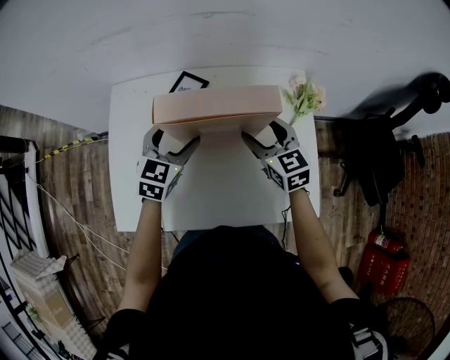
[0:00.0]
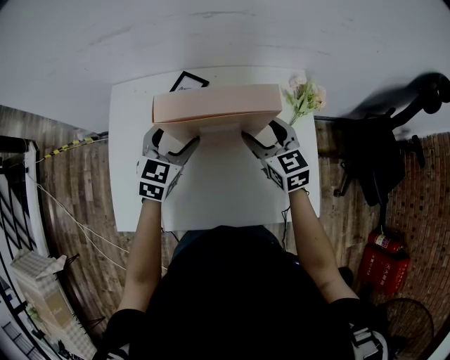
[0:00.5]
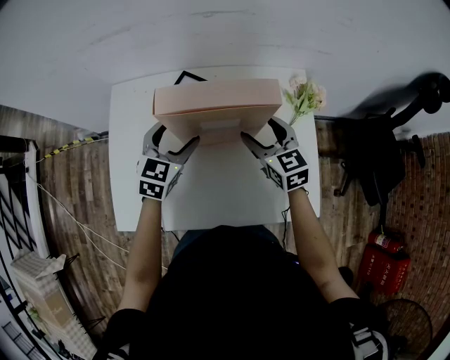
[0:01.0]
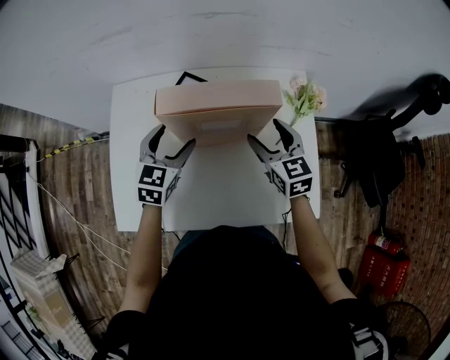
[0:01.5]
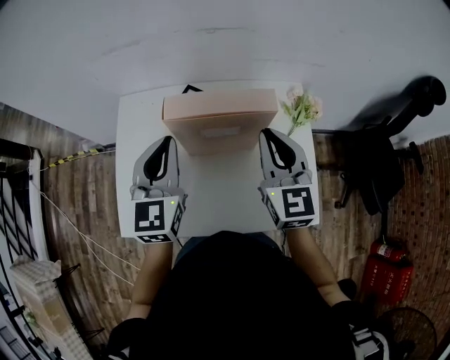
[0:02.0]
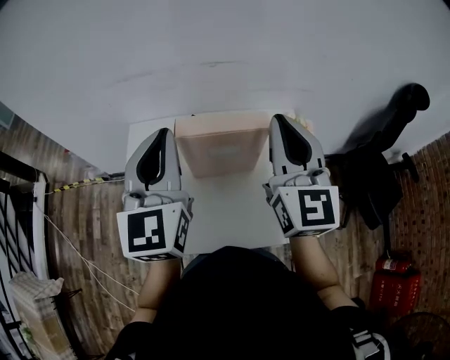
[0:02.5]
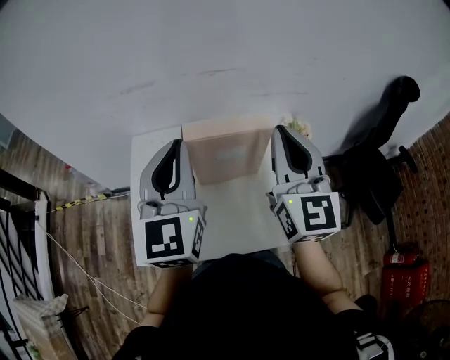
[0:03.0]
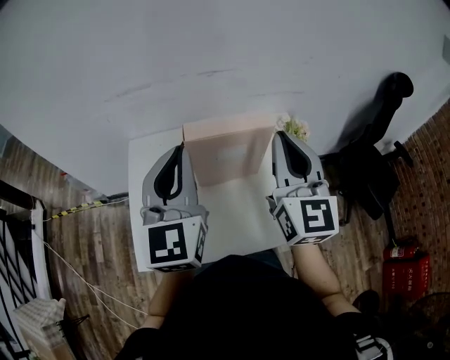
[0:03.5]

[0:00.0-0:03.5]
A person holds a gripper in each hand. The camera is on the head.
0:00.0 to 0:02.0: Both grippers move upward, some 15 cm. The left gripper turns by roughly 30 degrees, and closes up. Meanwhile the right gripper rotates approximately 20 degrees, and closes.
0:02.0 to 0:03.5: Both grippers move upward and backward, approximately 15 cm.

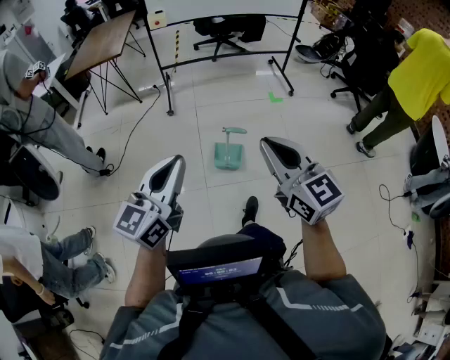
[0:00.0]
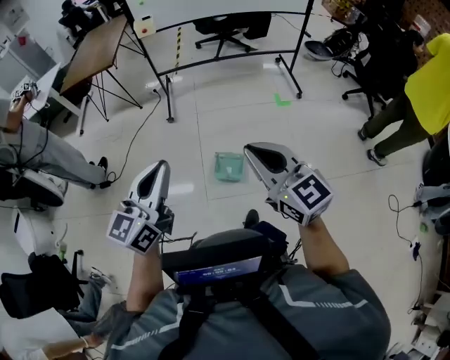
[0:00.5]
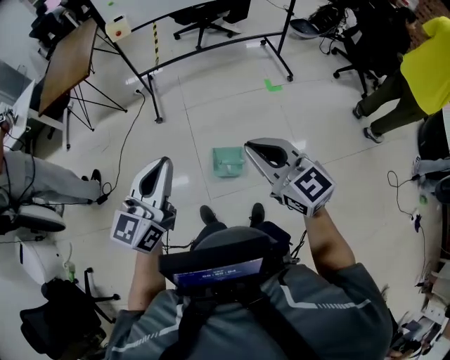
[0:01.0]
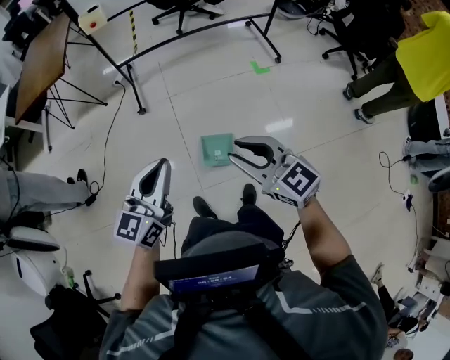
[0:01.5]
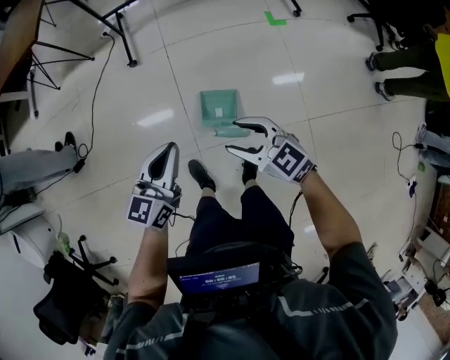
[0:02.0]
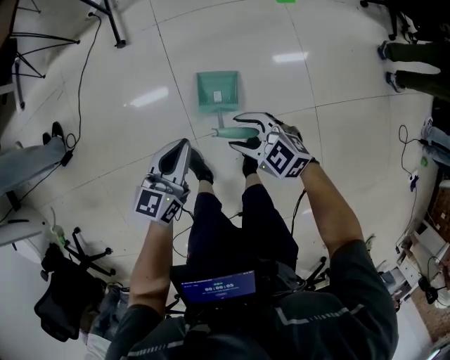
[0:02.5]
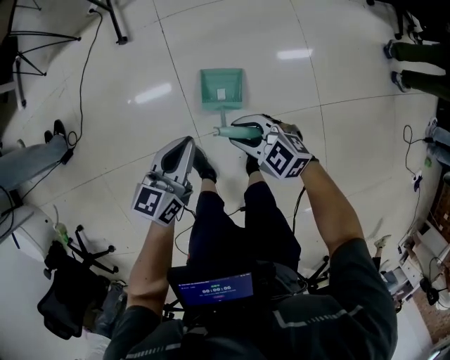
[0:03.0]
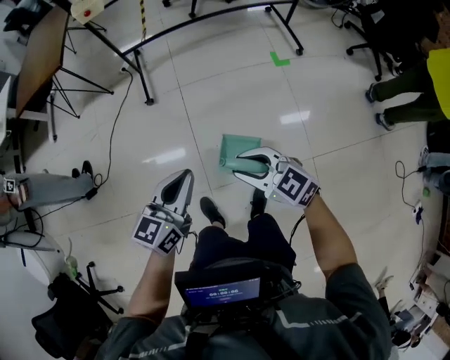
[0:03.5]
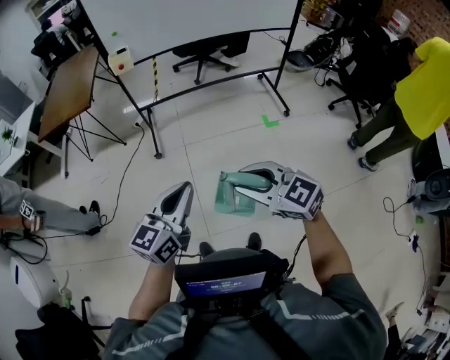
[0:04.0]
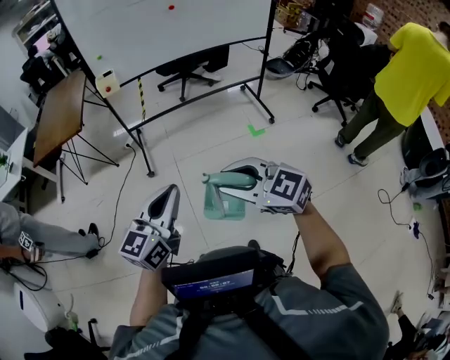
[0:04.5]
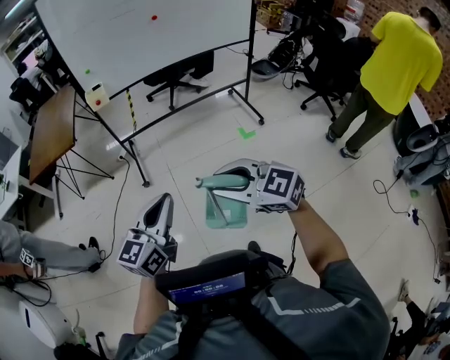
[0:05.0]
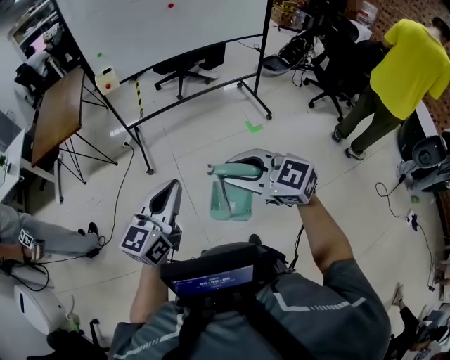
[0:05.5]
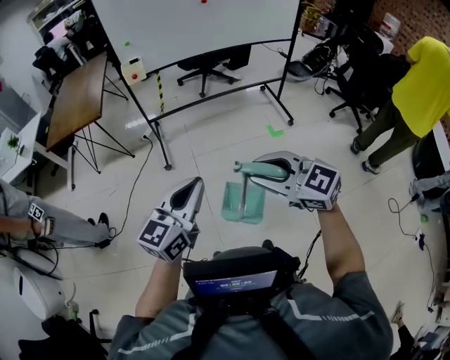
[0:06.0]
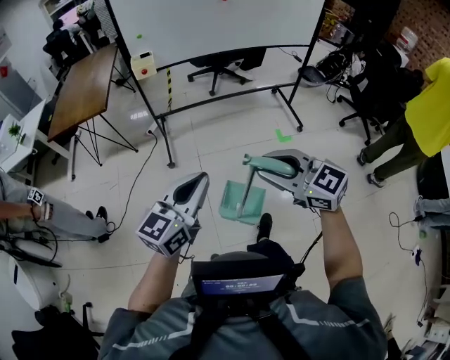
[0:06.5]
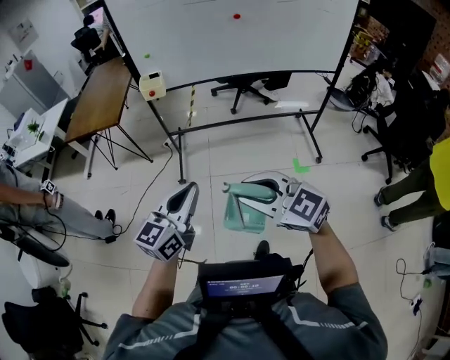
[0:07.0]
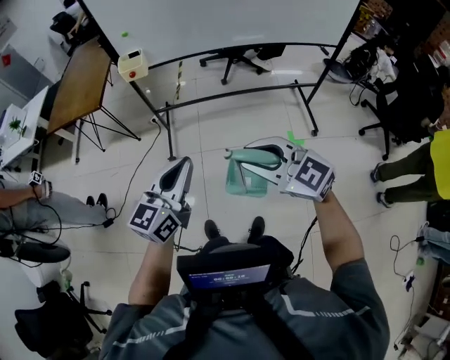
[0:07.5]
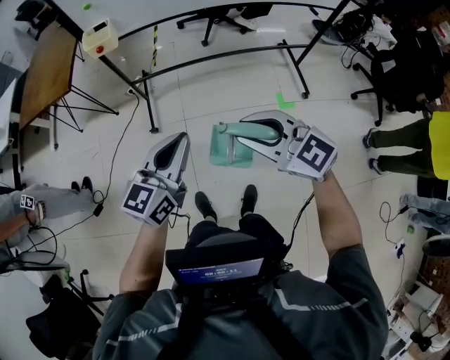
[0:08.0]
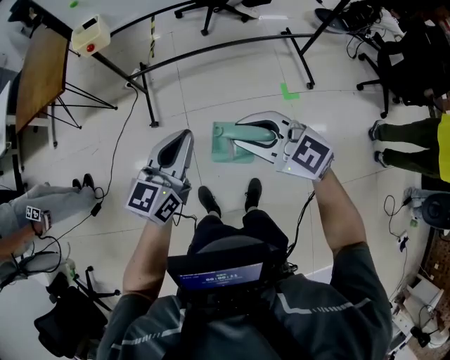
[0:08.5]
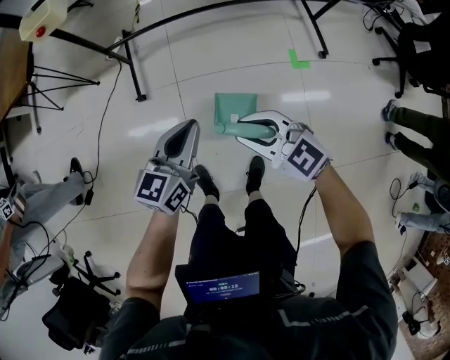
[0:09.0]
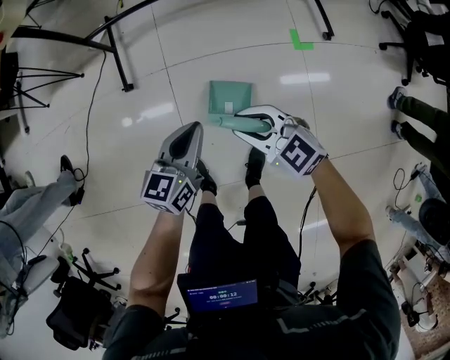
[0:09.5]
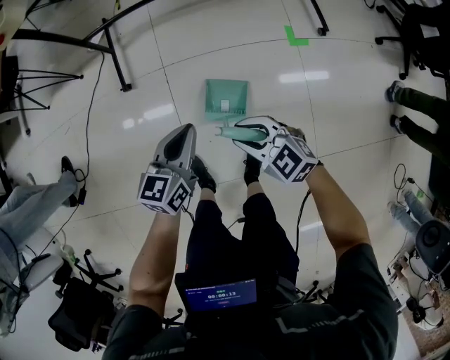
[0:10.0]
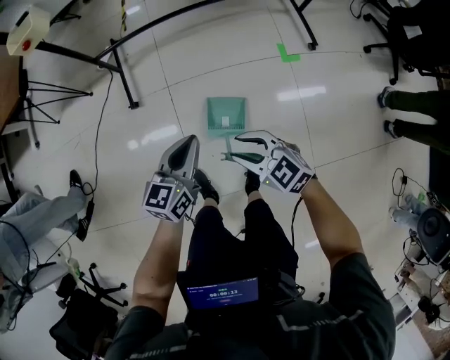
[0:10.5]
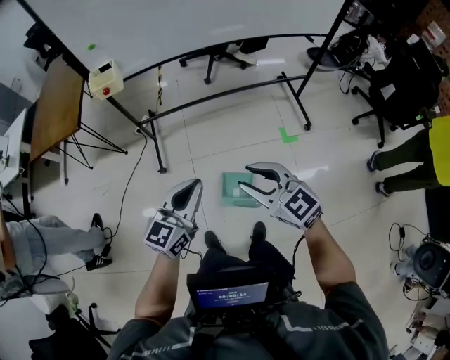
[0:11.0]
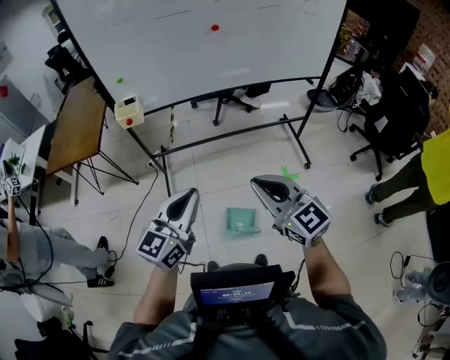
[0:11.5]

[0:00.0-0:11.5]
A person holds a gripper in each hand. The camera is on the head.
0:00.0 to 0:02.0: Both grippers are carried forward, roughly 60 cm. Both grippers travel together downward, approximately 40 cm. The right gripper changes its angle by about 30 degrees, and opens up.
0:02.0 to 0:04.0: The two grippers go some 35 cm upward. The right gripper closes.
0:04.0 to 0:06.0: The right gripper shifts about 5 cm upward. The left gripper travels to the left by approximately 5 cm.
0:06.0 to 0:07.5: The two grippers travel together, forward and to the right, approximately 40 cm.
0:07.5 to 0:09.5: The grippers both shift downward by about 60 cm. The left gripper rotates roughly 20 degrees.
0:09.5 to 0:11.5: The two grippers go approximately 60 cm upward. The right gripper changes its angle by approximately 30 degrees, and closes up, while the left gripper turns by some 30 degrees.

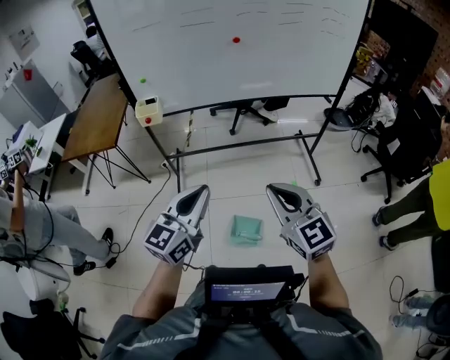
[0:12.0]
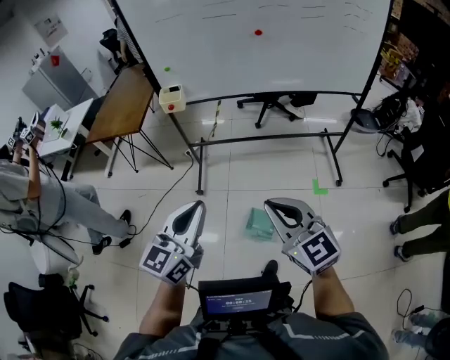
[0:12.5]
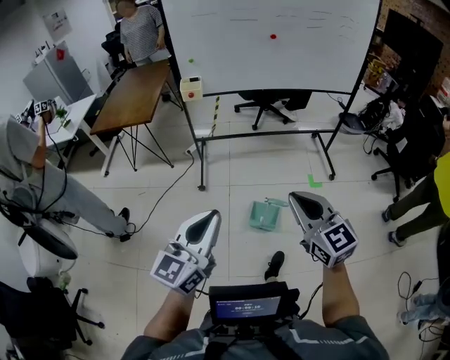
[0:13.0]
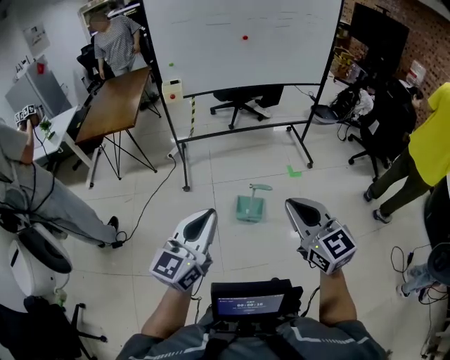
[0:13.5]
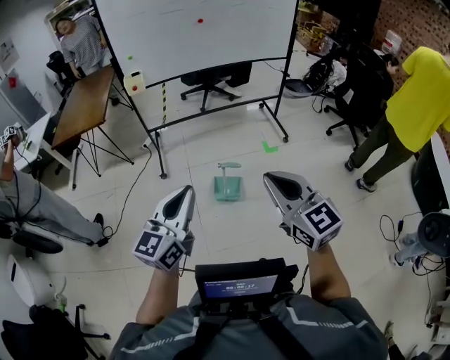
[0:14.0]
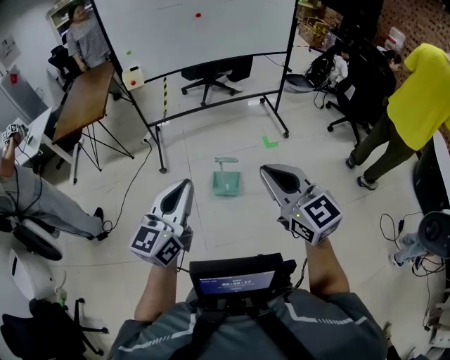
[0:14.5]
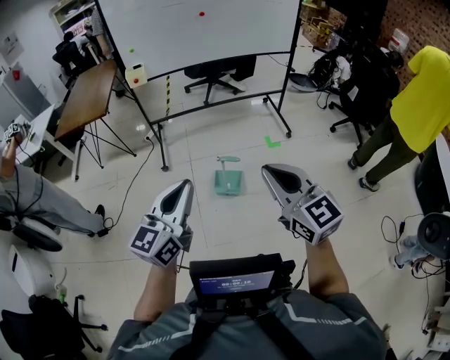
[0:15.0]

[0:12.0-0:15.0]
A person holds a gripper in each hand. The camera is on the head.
0:12.0 to 0:13.5: The pair of grippers is taken backward, approximately 60 cm.
0:13.5 to 0:15.0: Both grippers move to the right, some 15 cm.

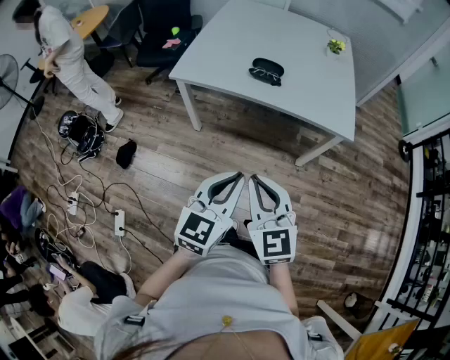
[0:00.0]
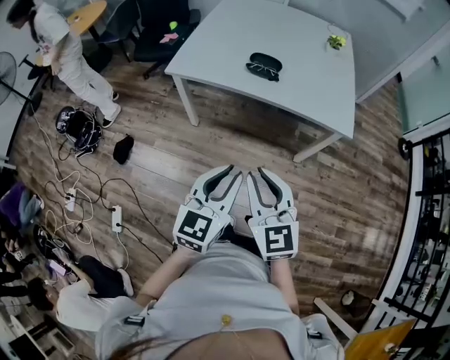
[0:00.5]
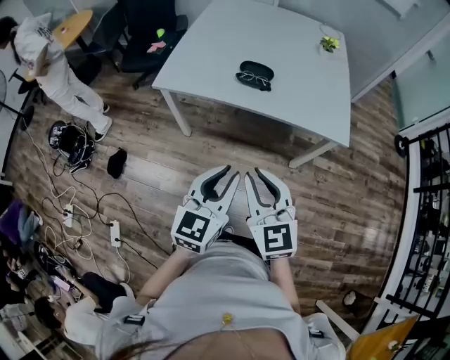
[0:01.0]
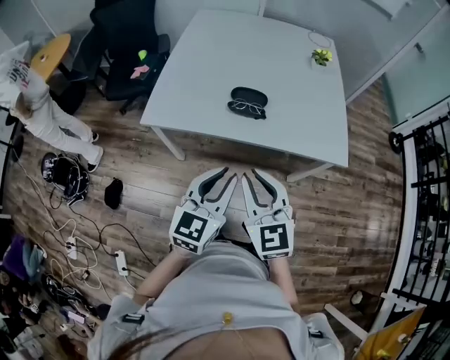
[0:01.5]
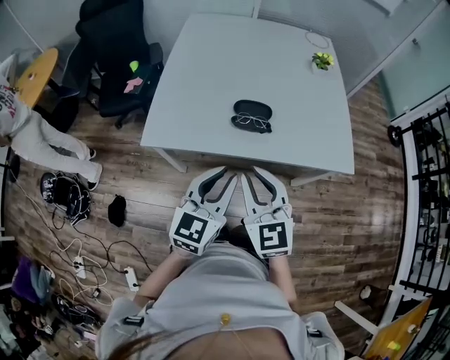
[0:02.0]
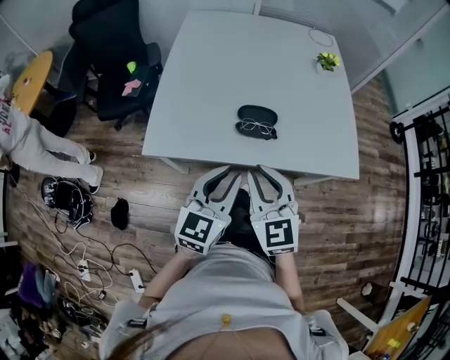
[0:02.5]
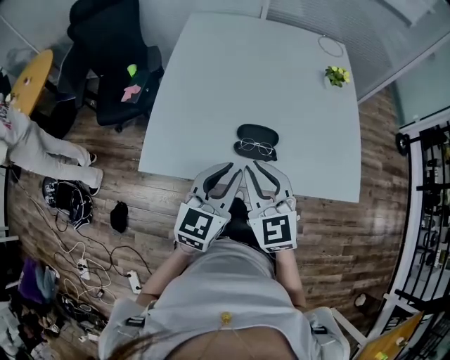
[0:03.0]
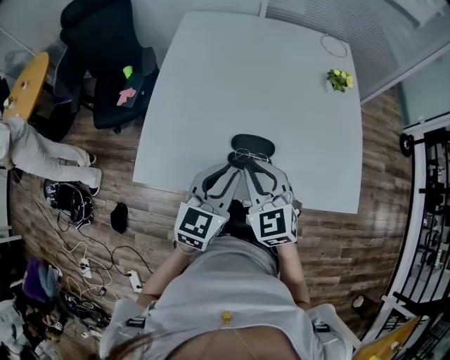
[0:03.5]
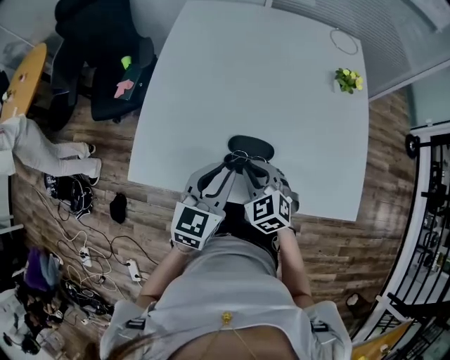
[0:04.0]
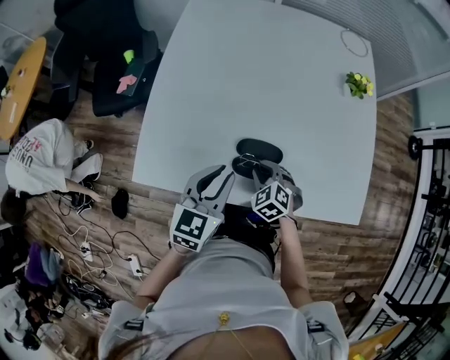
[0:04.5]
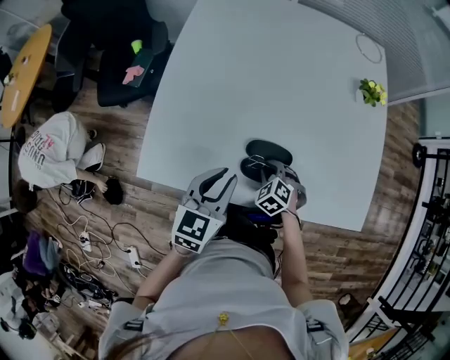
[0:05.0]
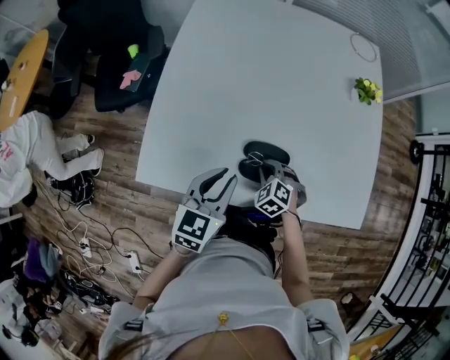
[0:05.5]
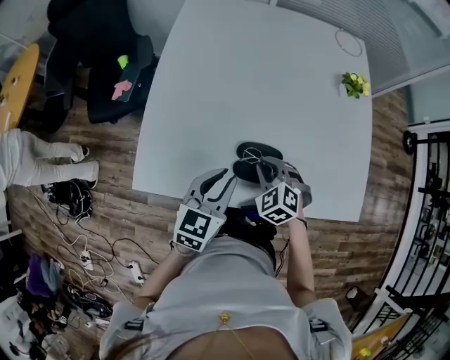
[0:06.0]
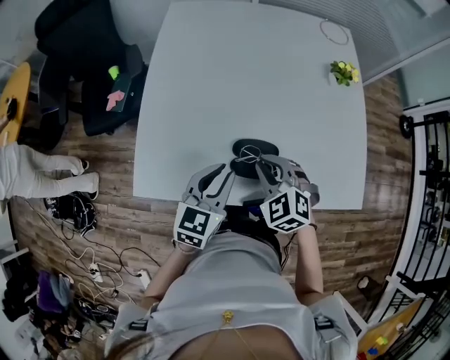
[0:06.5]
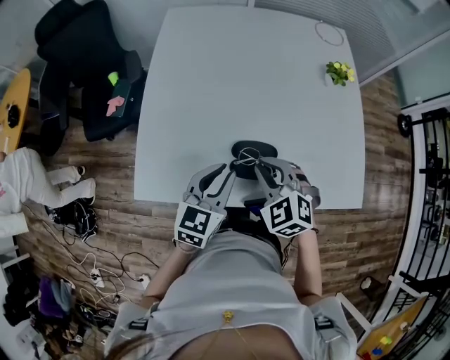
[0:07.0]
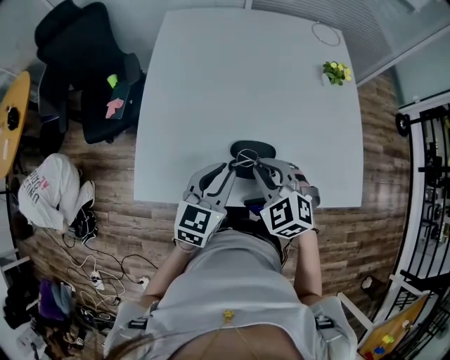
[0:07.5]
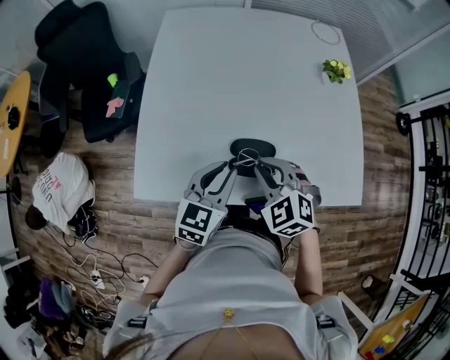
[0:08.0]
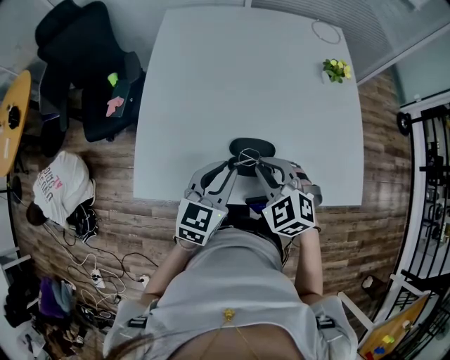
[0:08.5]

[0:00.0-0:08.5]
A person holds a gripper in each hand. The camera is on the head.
0:00.0 to 0:02.0: Both grippers travel together forward, about 30 cm.
0:02.0 to 0:04.0: The left gripper is displaced forward by approximately 25 cm; the right gripper goes about 30 cm forward and downward, and rotates roughly 30 degrees.
0:04.0 to 0:06.5: The right gripper travels downward and back again, some 15 cm each way.
0:06.5 to 0:08.5: The grippers make only small movements.
